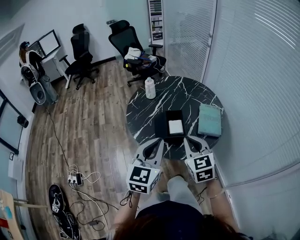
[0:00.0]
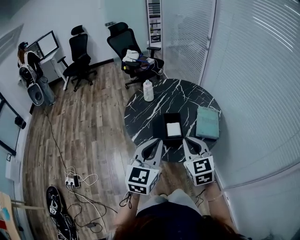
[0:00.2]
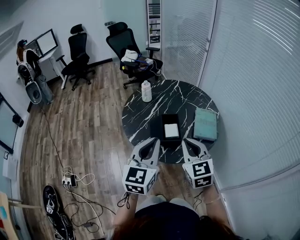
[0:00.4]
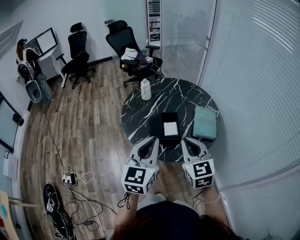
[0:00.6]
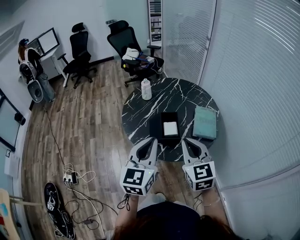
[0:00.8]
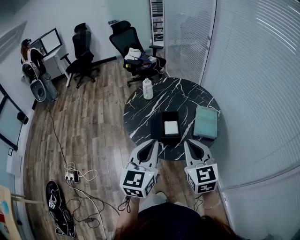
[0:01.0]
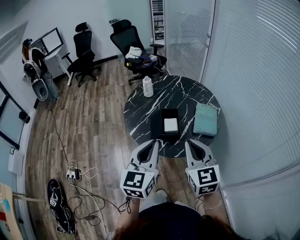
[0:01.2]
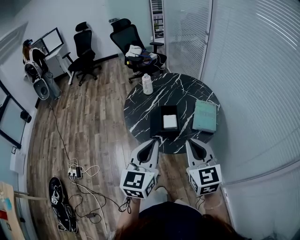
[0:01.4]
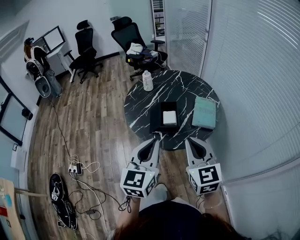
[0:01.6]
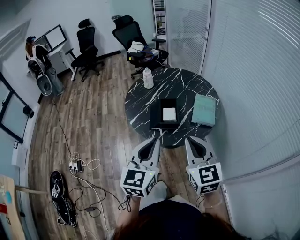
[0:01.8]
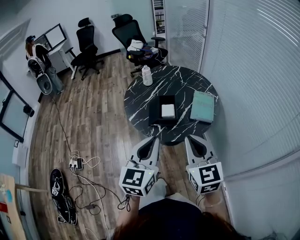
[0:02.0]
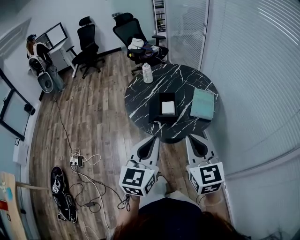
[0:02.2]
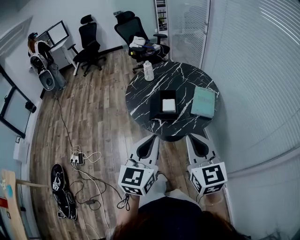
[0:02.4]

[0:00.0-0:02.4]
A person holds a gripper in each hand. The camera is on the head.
0:00.0 to 0:01.2: The right gripper goes roughly 10 cm upward and backward.
0:01.2 to 0:02.4: The two grippers go roughly 10 cm backward.

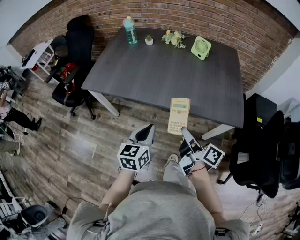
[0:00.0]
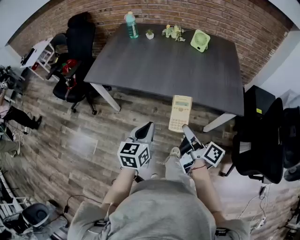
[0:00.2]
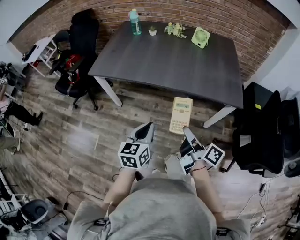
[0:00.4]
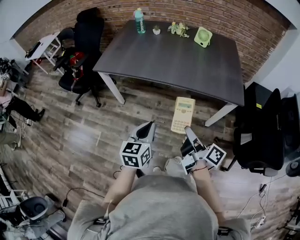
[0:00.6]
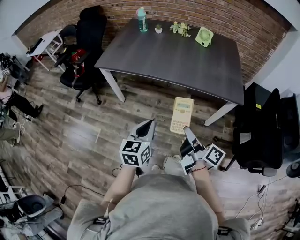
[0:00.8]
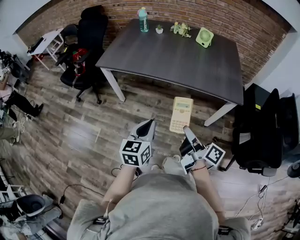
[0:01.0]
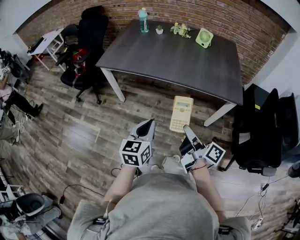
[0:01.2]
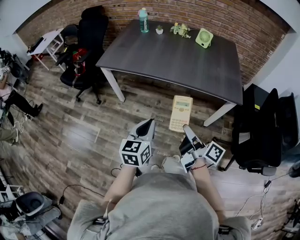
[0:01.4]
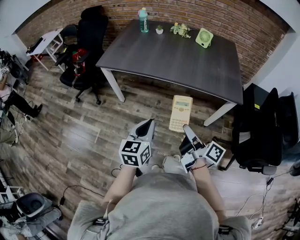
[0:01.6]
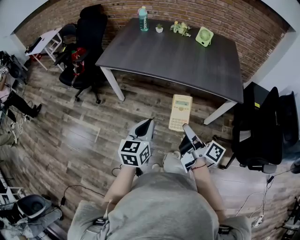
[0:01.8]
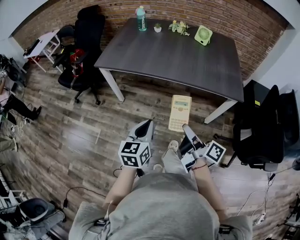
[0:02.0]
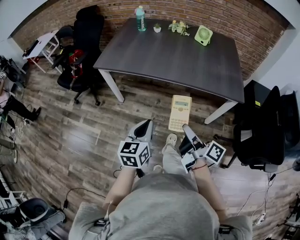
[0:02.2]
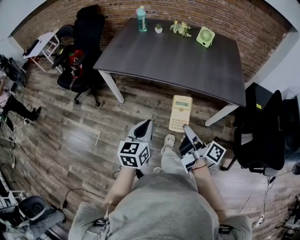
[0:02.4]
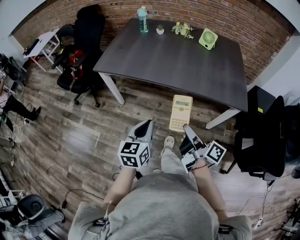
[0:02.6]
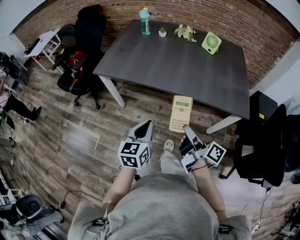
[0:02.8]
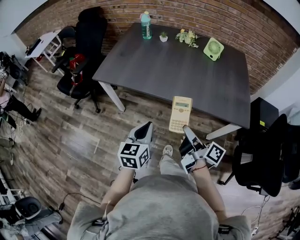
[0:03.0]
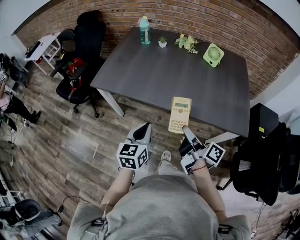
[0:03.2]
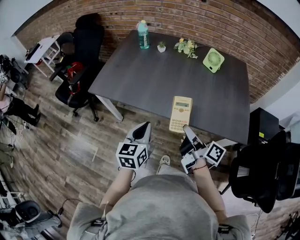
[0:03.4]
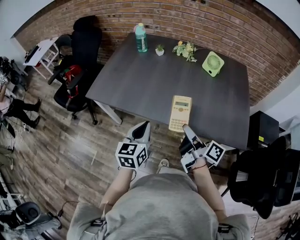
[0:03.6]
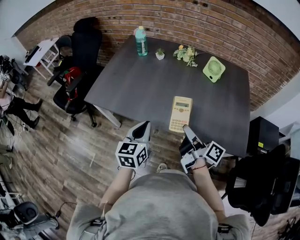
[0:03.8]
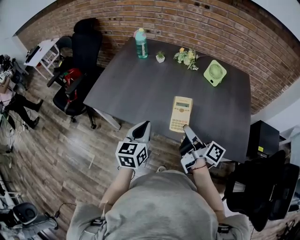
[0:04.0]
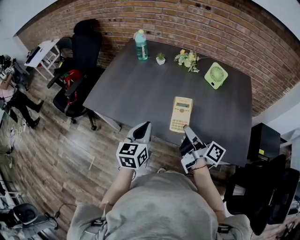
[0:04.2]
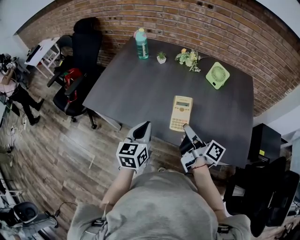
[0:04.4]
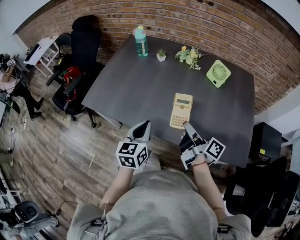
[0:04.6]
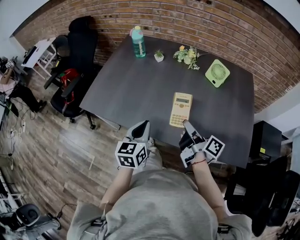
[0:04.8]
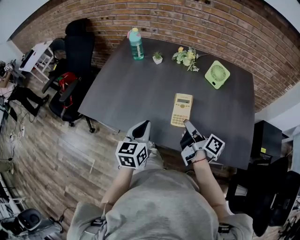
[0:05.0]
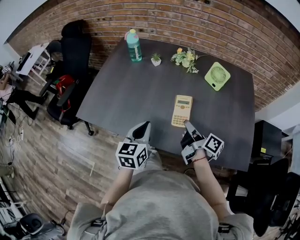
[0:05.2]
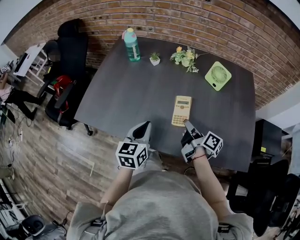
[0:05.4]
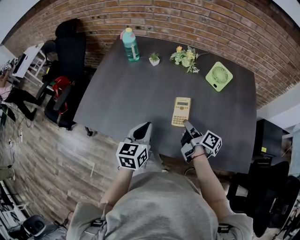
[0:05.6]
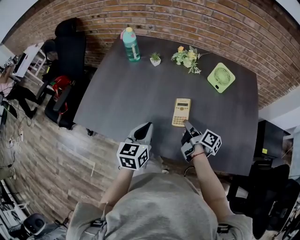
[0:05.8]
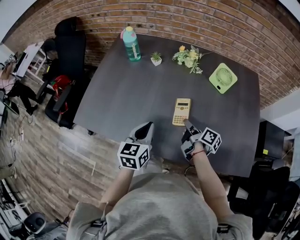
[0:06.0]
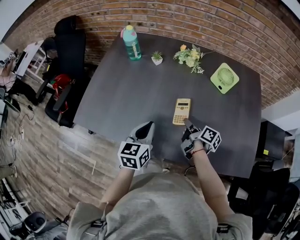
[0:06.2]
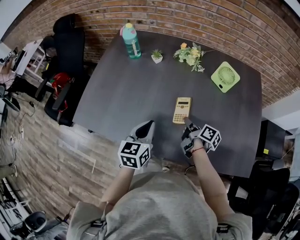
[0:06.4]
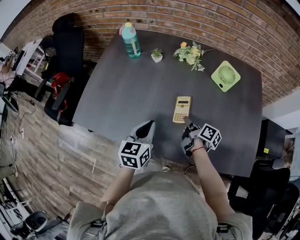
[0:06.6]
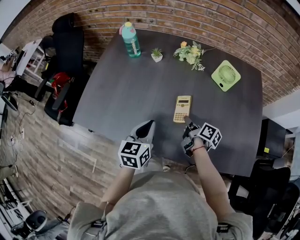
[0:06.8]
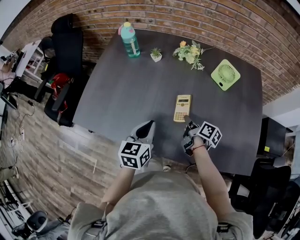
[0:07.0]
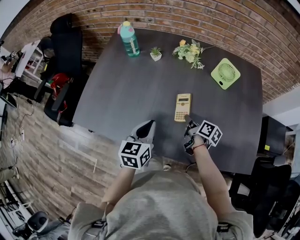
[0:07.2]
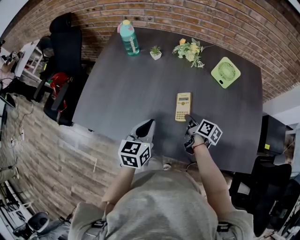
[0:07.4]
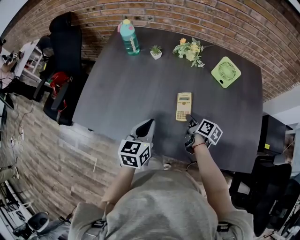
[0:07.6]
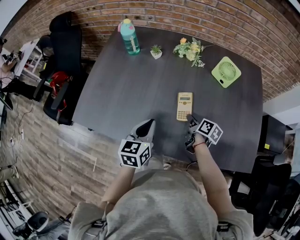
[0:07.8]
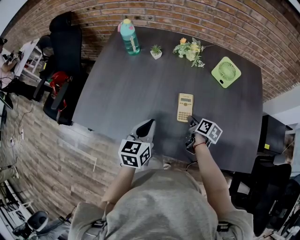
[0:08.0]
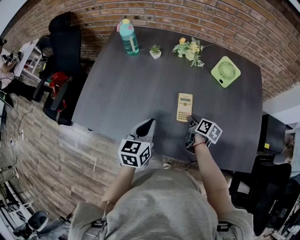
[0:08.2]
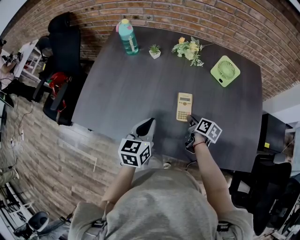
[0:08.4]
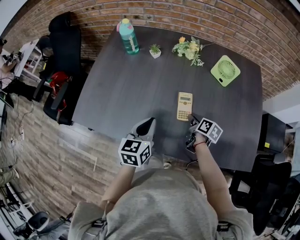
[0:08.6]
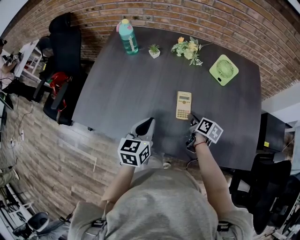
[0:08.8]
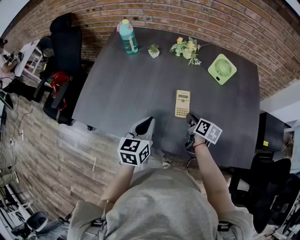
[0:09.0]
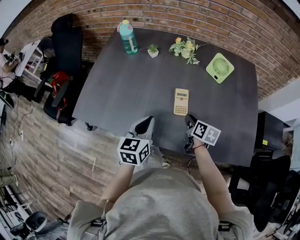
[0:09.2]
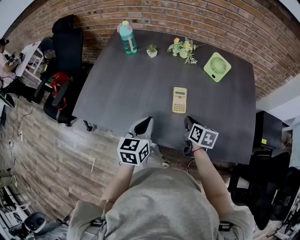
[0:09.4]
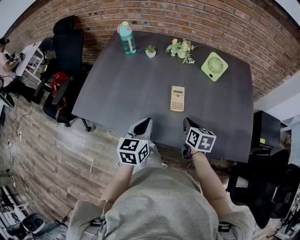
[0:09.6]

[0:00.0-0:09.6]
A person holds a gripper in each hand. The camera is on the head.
0:00.0 to 0:01.6: Both grippers move backward and to the left, approximately 20 cm.
0:01.6 to 0:03.2: Both grippers travel together forward, about 20 cm.
0:03.2 to 0:04.8: The two grippers go some 20 cm forward.
0:04.8 to 0:06.4: The right gripper goes roughly 20 cm forward and downward, and swivels approximately 20 degrees, while the left gripper heads forward, covering about 10 cm.
0:06.4 to 0:08.0: The right gripper rotates some 20 degrees.
0:08.0 to 0:09.6: The left gripper travels backward by roughly 5 cm; the right gripper heads backward and upward, covering approximately 15 cm, rotates some 30 degrees, and closes up.

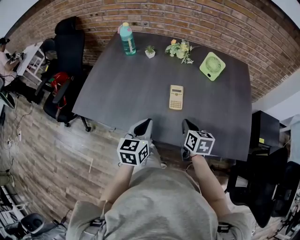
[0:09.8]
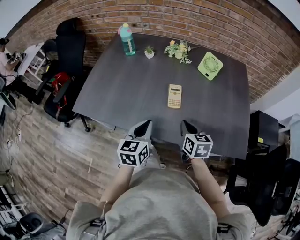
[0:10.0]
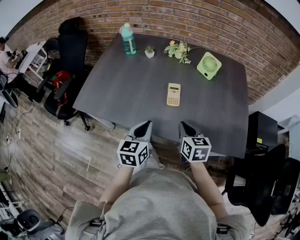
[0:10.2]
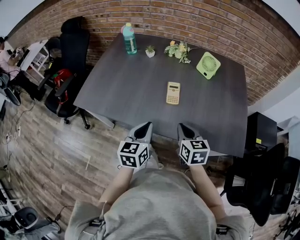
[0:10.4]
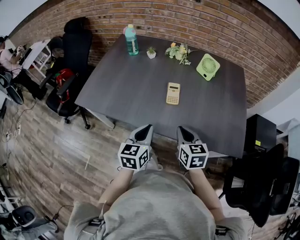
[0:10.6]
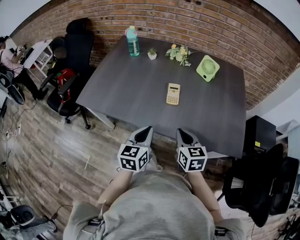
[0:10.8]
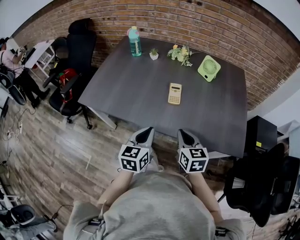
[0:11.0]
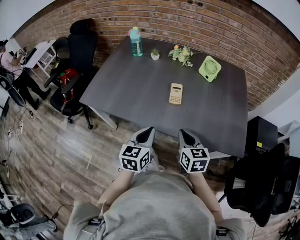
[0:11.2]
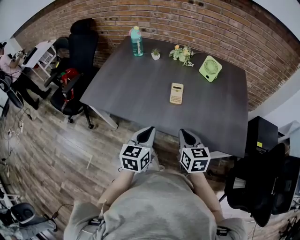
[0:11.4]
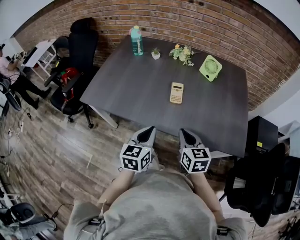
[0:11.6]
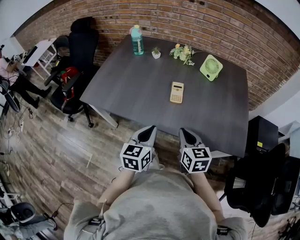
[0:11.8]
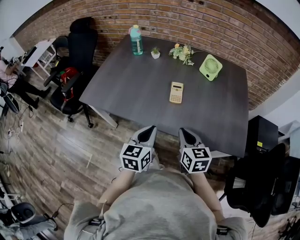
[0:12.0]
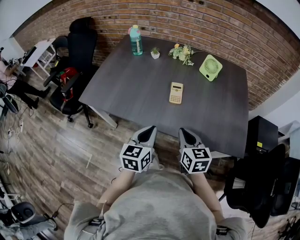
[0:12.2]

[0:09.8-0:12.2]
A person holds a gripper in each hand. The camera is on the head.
0:09.8 to 0:11.0: The right gripper heads backward and upward, covering about 15 cm. The left gripper moves backward, roughly 10 cm.
0:11.0 to 0:12.2: Both grippers stay about where they are.

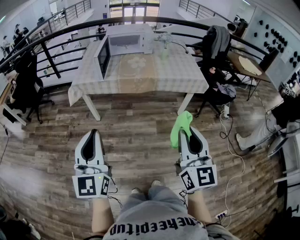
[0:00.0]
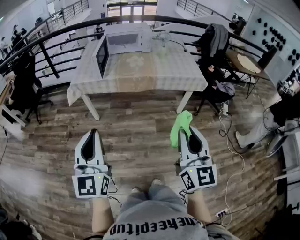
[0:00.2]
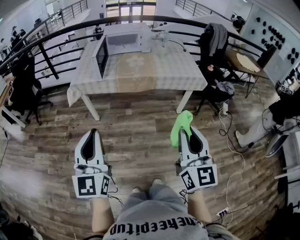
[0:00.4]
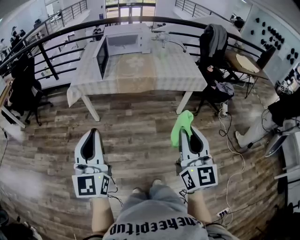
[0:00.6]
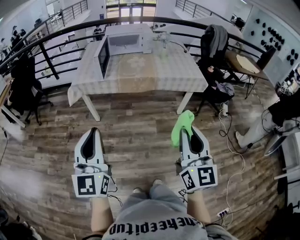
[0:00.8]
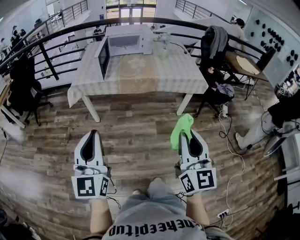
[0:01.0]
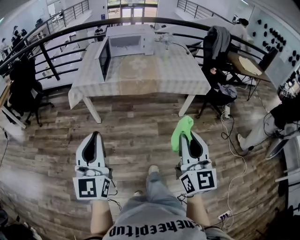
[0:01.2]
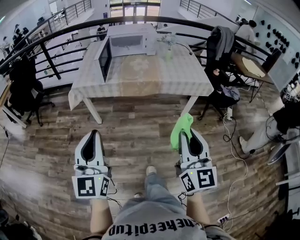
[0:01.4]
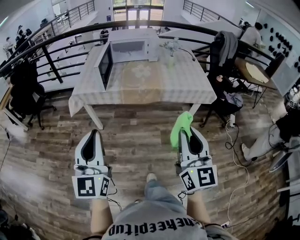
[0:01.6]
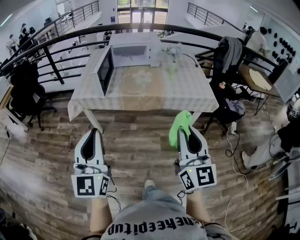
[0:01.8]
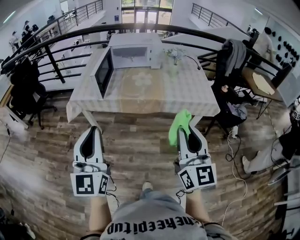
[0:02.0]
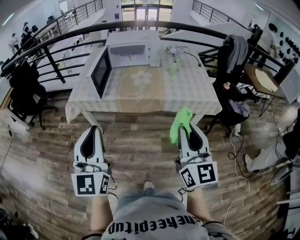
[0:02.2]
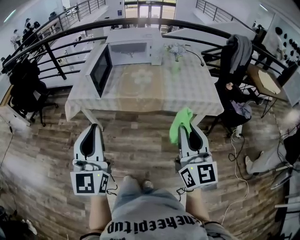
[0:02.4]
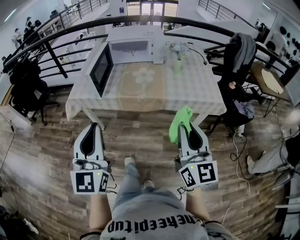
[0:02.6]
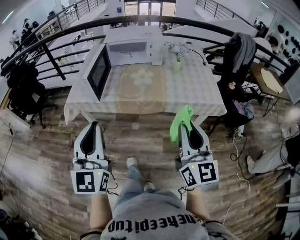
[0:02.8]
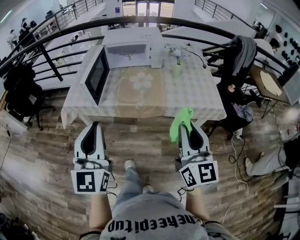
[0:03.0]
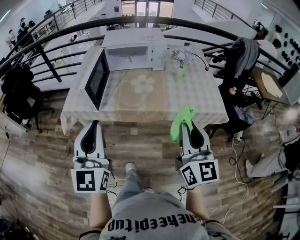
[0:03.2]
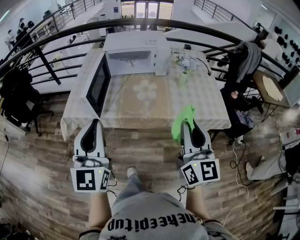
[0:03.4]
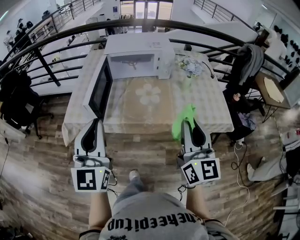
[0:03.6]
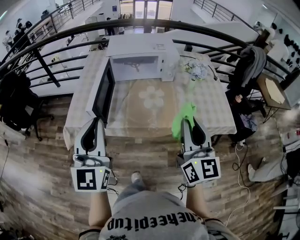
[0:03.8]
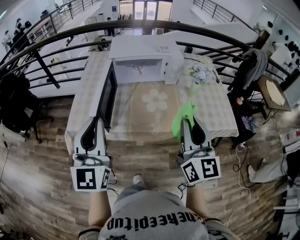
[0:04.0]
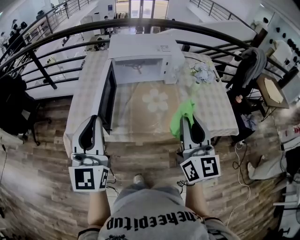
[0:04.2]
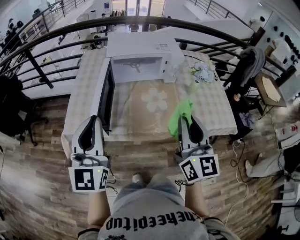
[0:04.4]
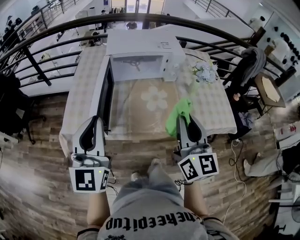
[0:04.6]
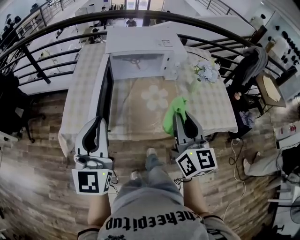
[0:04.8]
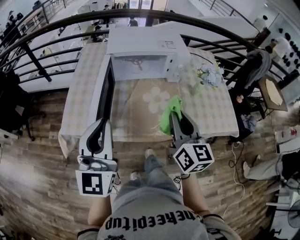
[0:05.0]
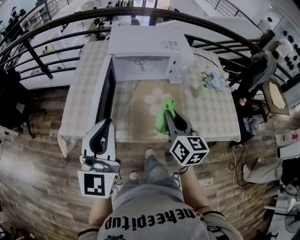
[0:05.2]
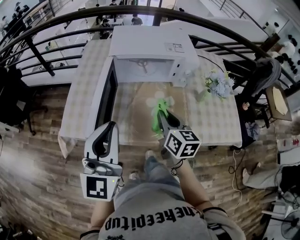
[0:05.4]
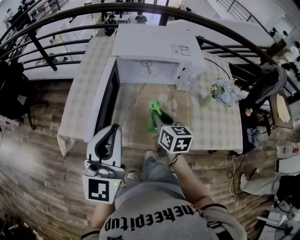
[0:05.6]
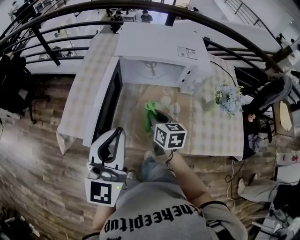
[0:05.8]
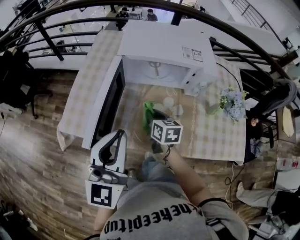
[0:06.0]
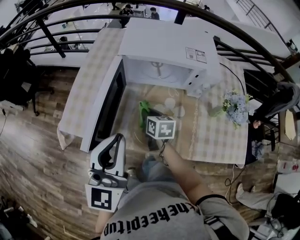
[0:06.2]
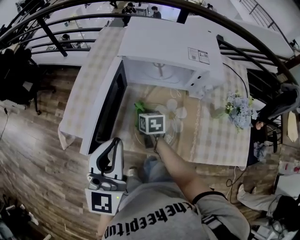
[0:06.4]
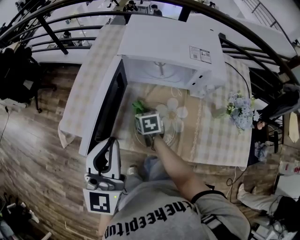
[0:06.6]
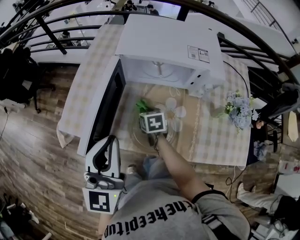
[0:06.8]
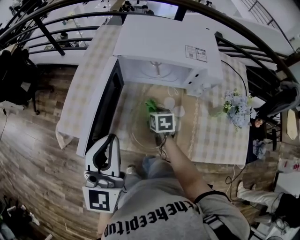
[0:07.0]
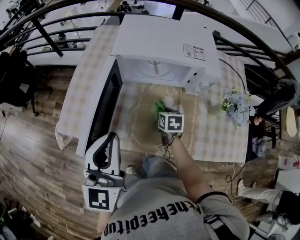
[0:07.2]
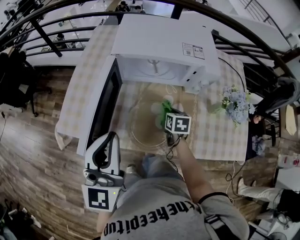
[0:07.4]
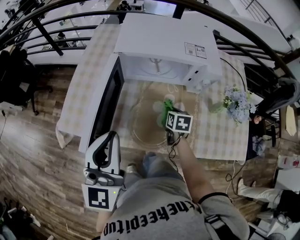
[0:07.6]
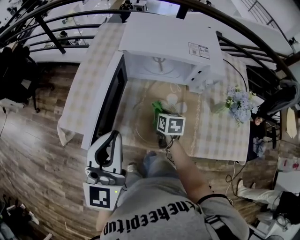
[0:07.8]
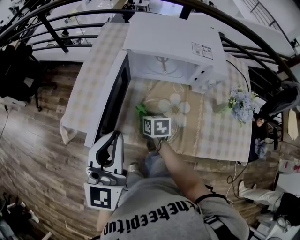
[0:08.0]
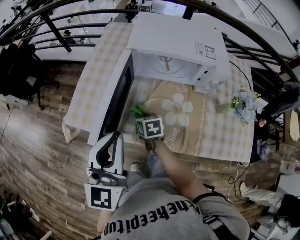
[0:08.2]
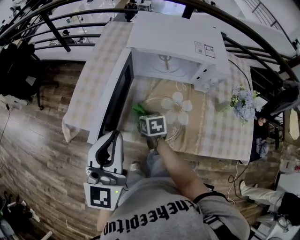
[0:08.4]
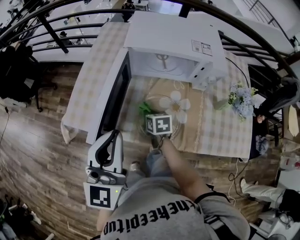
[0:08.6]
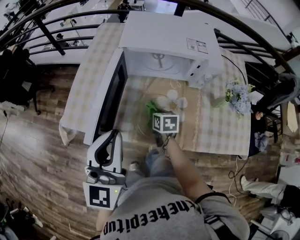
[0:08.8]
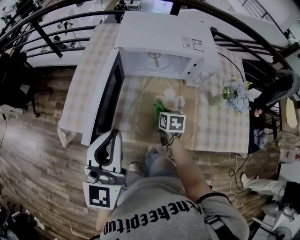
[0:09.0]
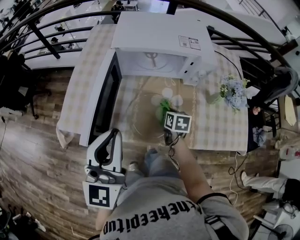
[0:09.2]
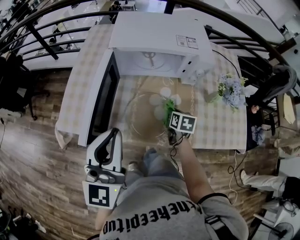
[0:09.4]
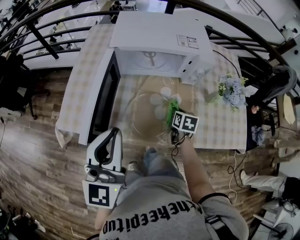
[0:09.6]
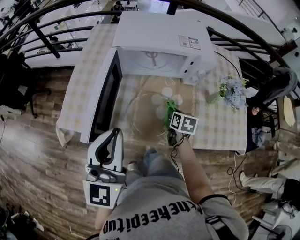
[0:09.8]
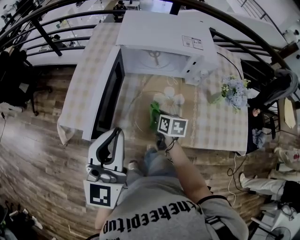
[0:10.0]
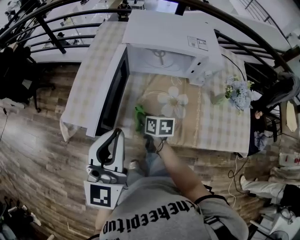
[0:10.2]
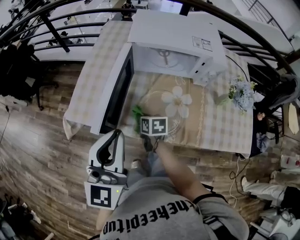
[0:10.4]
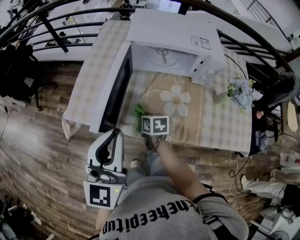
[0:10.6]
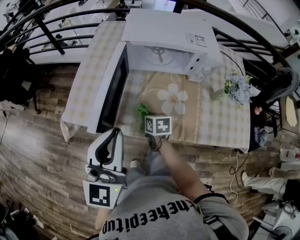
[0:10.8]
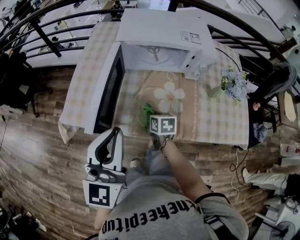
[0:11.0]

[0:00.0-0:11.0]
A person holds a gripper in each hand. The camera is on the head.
0:00.0 to 0:01.6: The two grippers go approximately 10 cm forward.
0:01.6 to 0:03.2: Both grippers travel together forward, approximately 25 cm.
0:03.2 to 0:04.8: Both grippers travel together forward and to the left, some 25 cm.
0:04.8 to 0:06.2: The left gripper moves forward, downward and to the right, some 10 cm. The right gripper shifts about 35 cm downward and forward, and points its fingers some 40 degrees further downward.
0:06.2 to 0:07.8: The right gripper shifts approximately 5 cm to the right.
0:07.8 to 0:09.4: The right gripper is displaced to the right by roughly 10 cm.
0:09.4 to 0:11.0: The right gripper is displaced to the left by some 15 cm.
